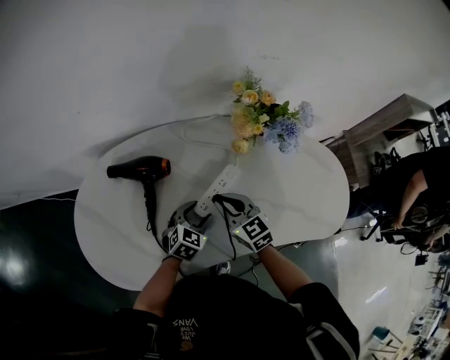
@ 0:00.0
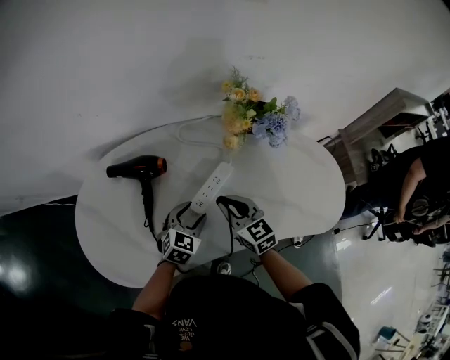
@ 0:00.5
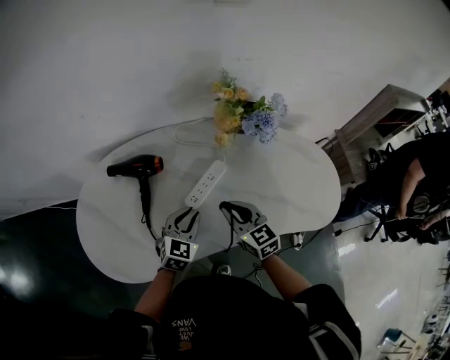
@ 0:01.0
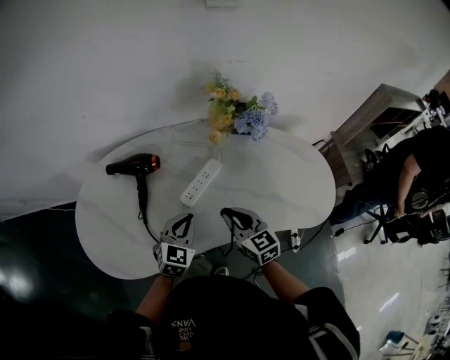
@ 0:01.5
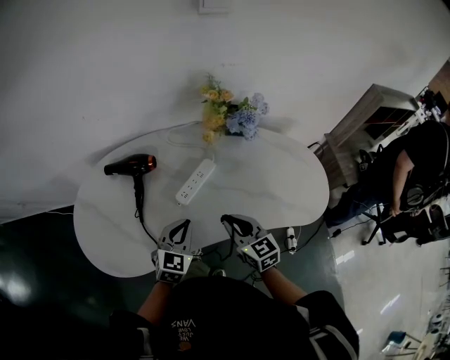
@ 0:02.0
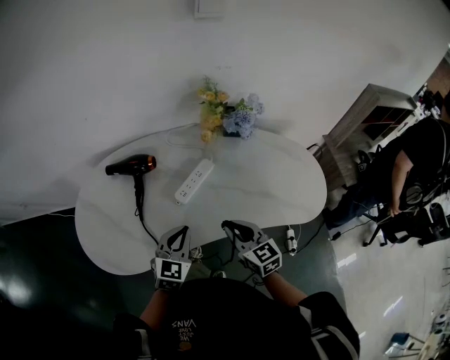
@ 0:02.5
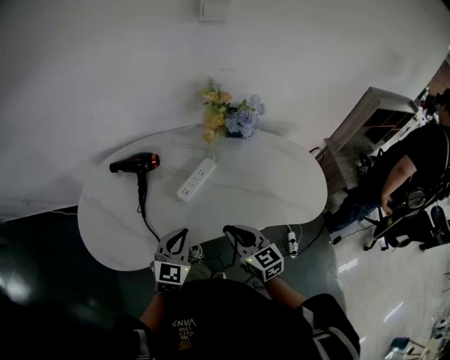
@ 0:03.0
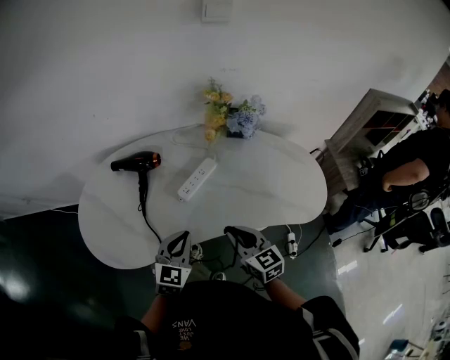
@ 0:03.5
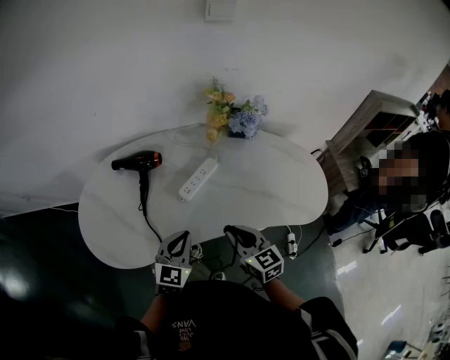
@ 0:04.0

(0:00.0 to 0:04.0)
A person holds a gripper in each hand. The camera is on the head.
0:00.0 - 0:02.0: The right gripper travels backward and to the right by some 20 cm. Meanwhile the left gripper heads backward and upward, covering about 20 cm, and closes up.
0:02.0 - 0:04.0: Both grippers move backward, roughly 5 cm.

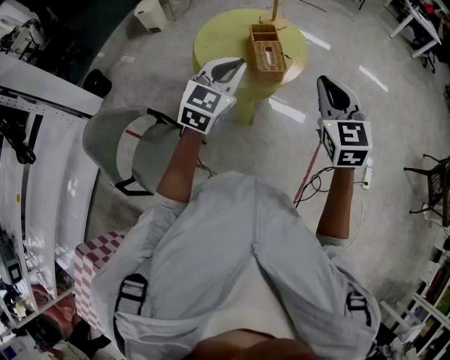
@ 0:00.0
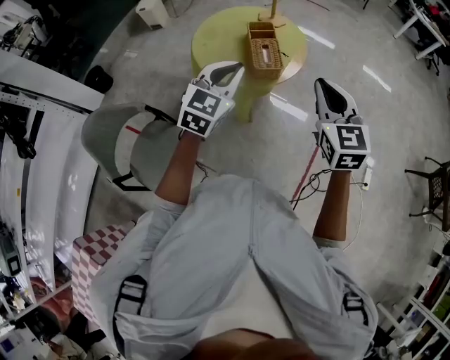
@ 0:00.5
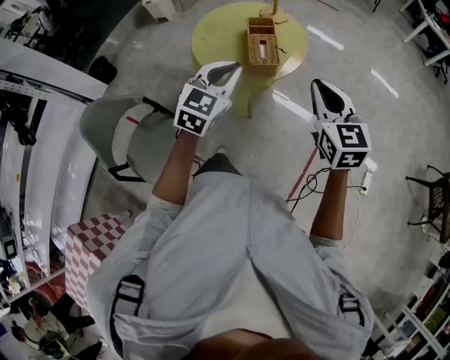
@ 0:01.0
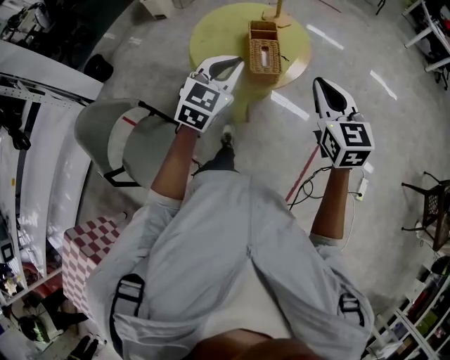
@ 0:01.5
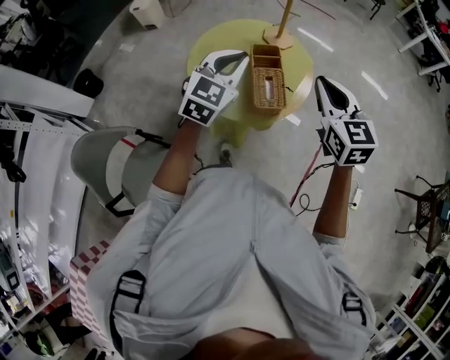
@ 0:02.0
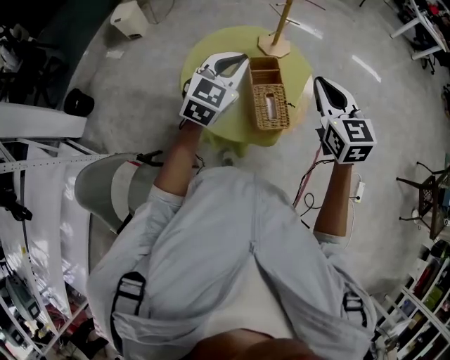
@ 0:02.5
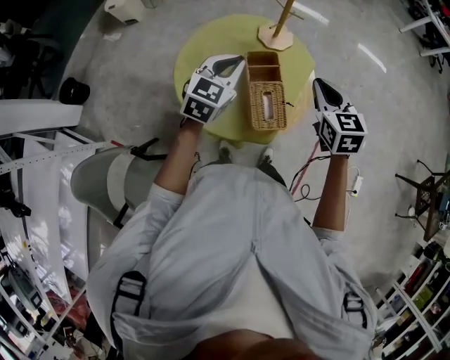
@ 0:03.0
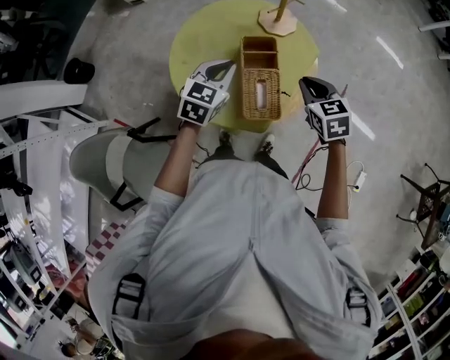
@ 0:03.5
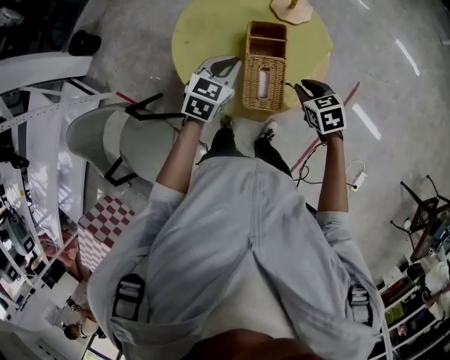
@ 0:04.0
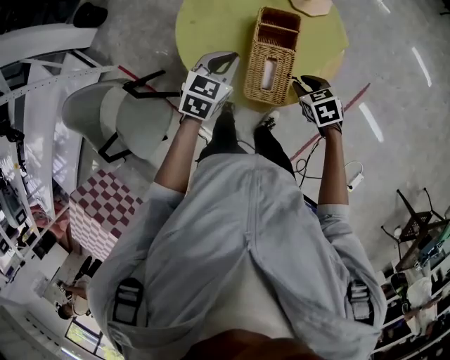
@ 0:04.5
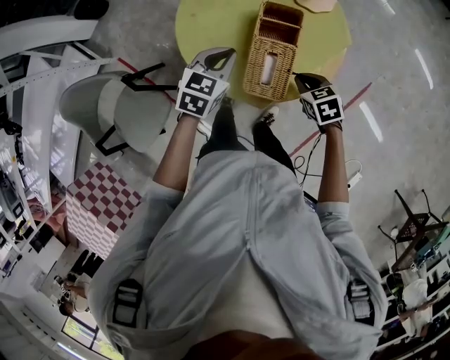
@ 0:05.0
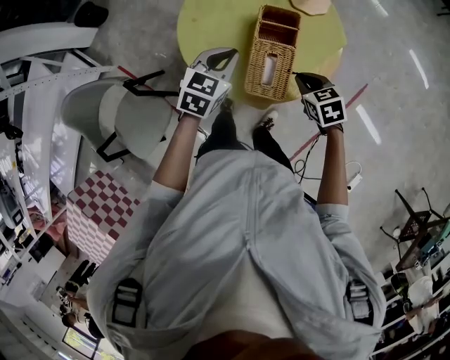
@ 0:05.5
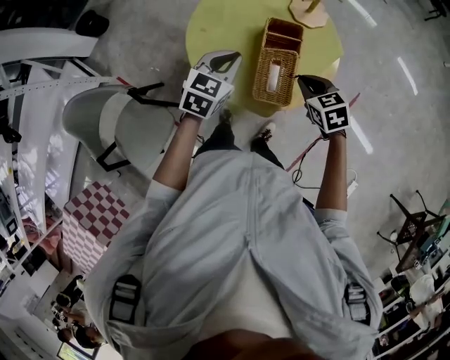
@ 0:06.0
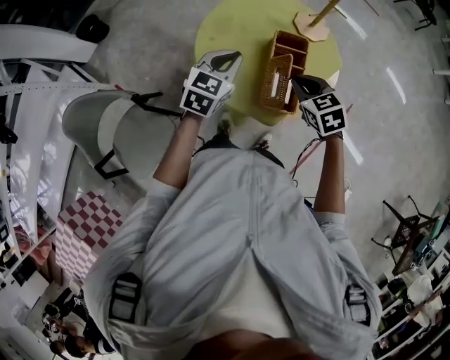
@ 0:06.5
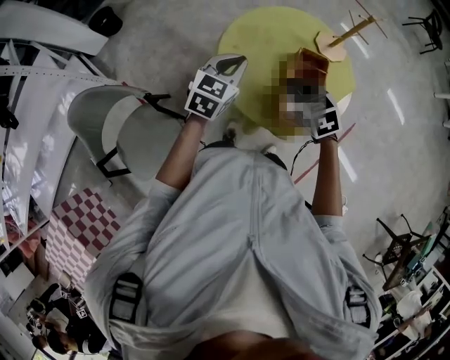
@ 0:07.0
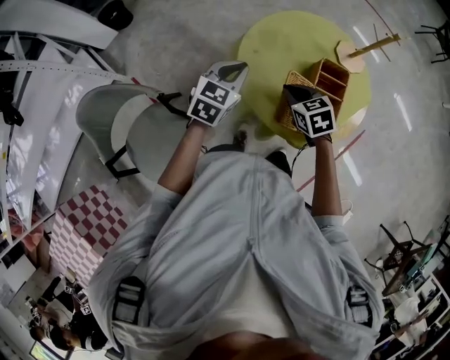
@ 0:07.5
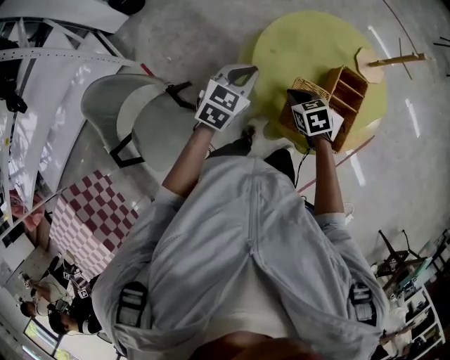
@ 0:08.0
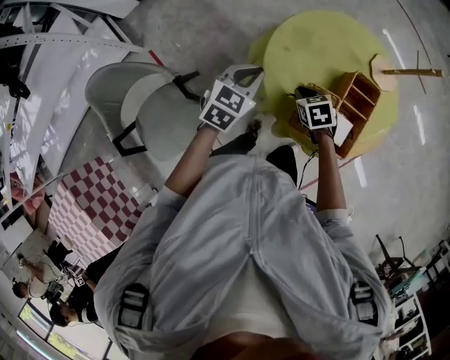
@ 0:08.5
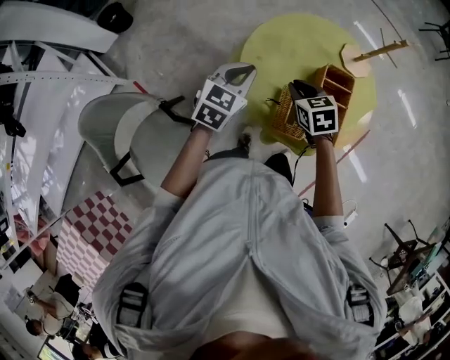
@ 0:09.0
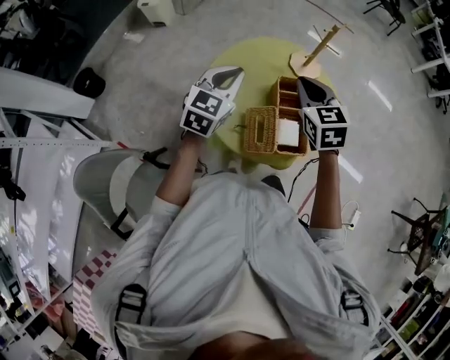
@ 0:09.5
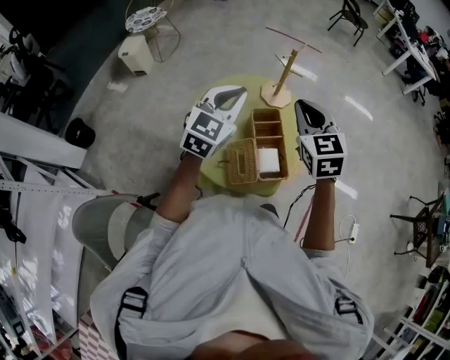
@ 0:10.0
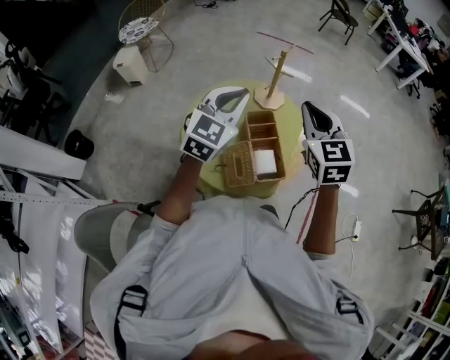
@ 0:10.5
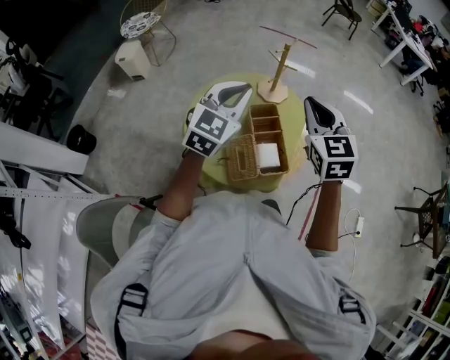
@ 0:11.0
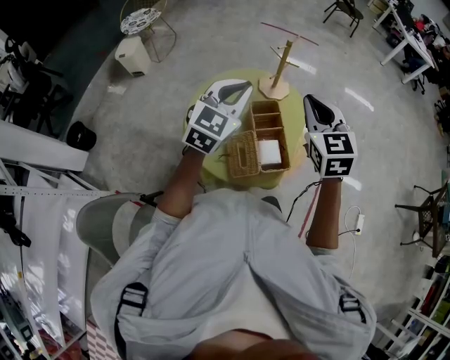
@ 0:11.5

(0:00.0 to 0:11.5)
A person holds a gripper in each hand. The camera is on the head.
0:00.0 - 0:02.0: The grippers both shift forward by some 20 cm.
0:02.0 - 0:04.0: Both grippers travel together downward and forward, roughly 30 cm. The left gripper changes its angle by about 30 degrees, while the right gripper tilts its fingers roughly 40 degrees downward.
0:04.0 - 0:06.0: Both grippers move to the left, some 5 cm. The right gripper goes downward and returns, approximately 5 cm each way.
0:06.0 - 0:07.5: Both grippers move to the left, about 20 cm.
0:07.5 - 0:09.5: The left gripper changes place by approximately 15 cm. The right gripper moves upward, some 15 cm, and swivels some 30 degrees.
0:09.5 - 0:11.5: The grippers both shift upward and to the right by roughly 15 cm.

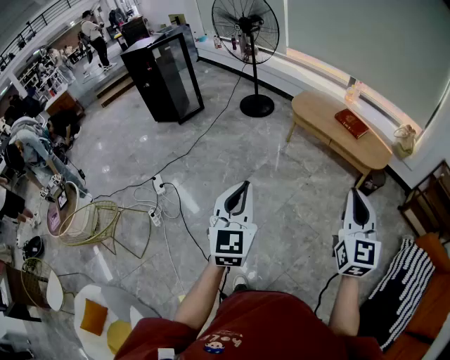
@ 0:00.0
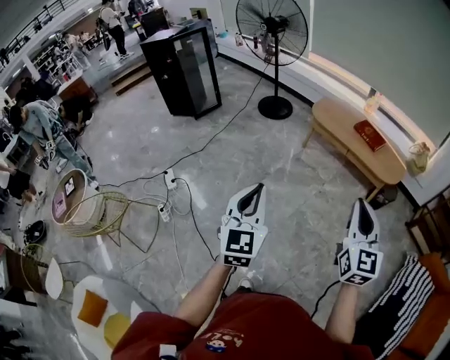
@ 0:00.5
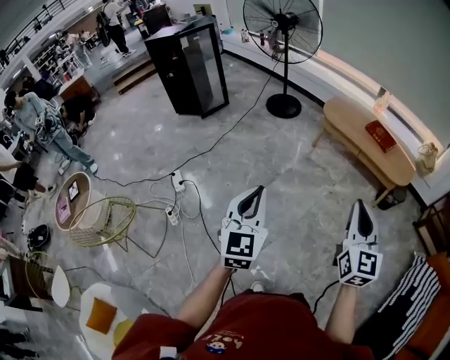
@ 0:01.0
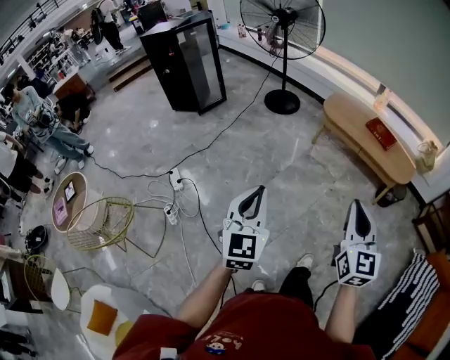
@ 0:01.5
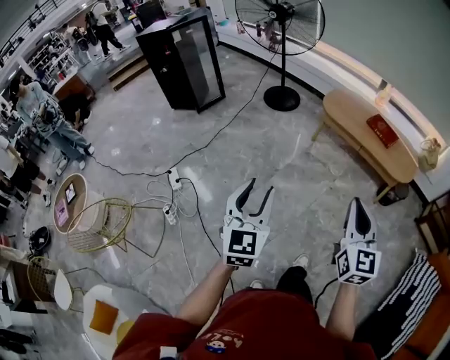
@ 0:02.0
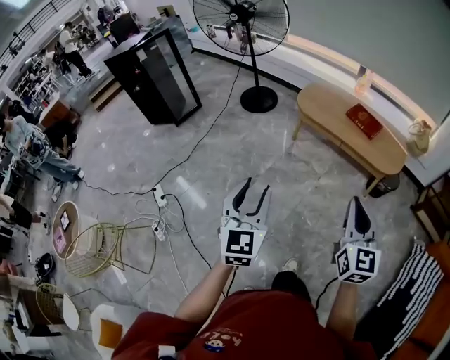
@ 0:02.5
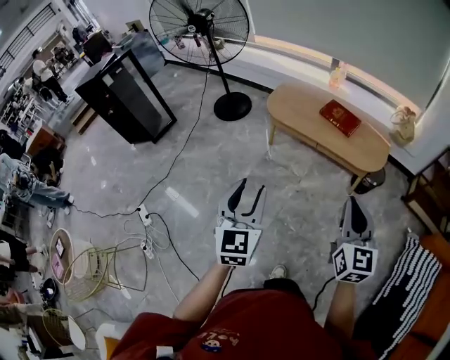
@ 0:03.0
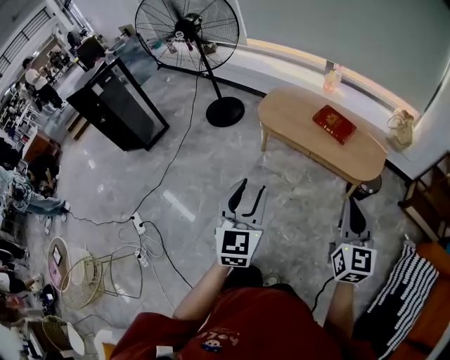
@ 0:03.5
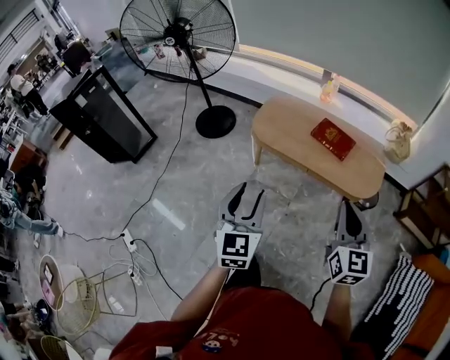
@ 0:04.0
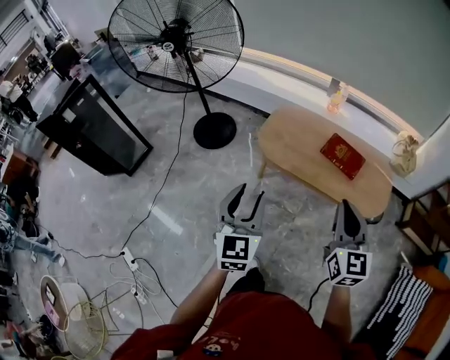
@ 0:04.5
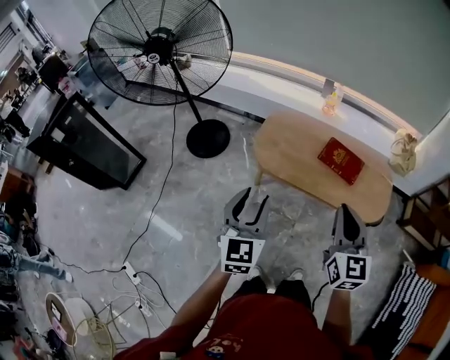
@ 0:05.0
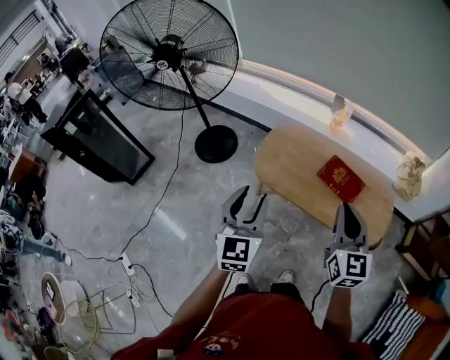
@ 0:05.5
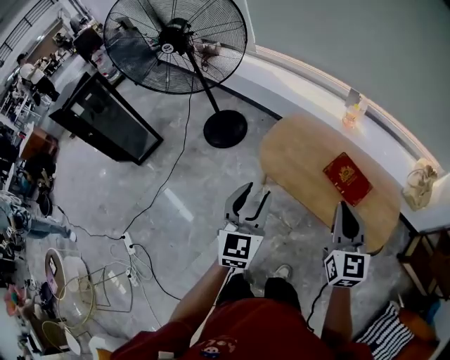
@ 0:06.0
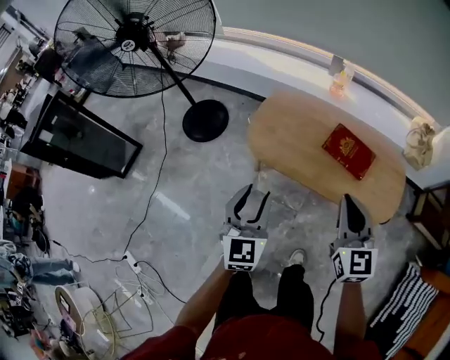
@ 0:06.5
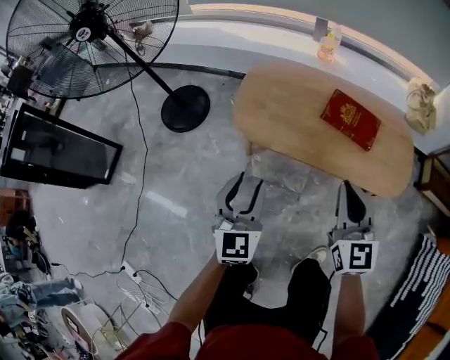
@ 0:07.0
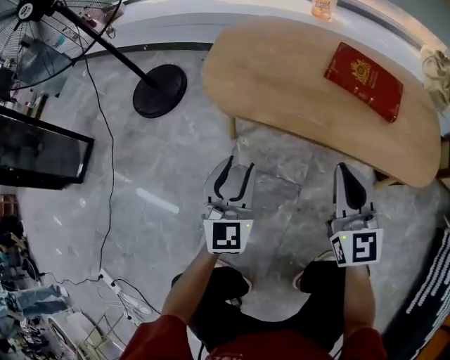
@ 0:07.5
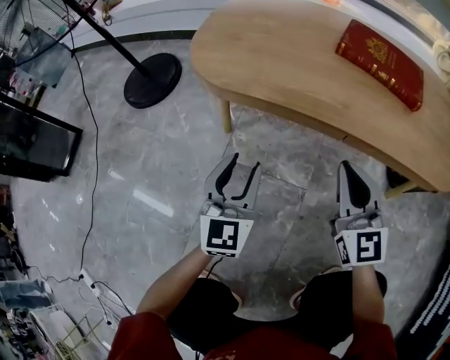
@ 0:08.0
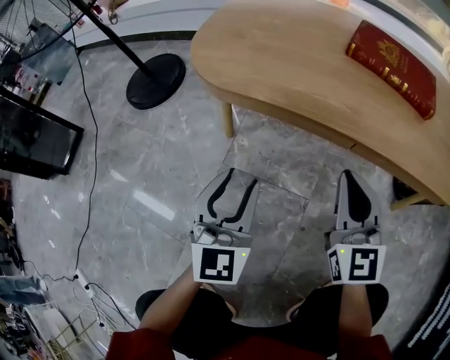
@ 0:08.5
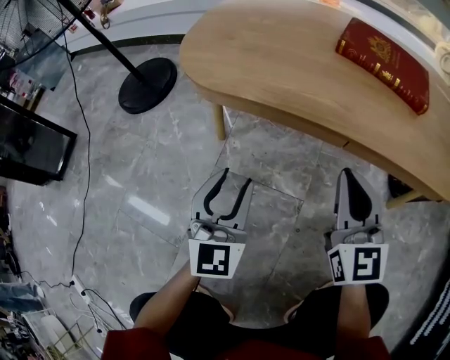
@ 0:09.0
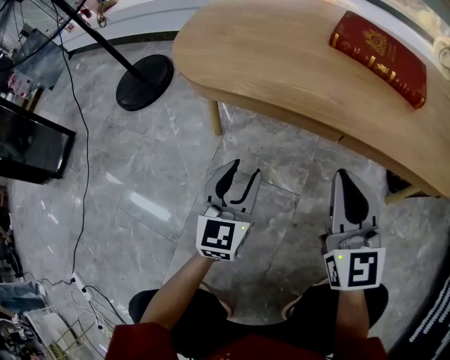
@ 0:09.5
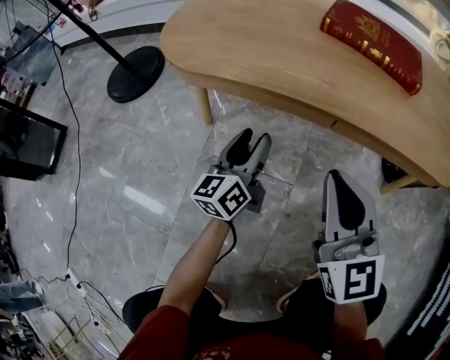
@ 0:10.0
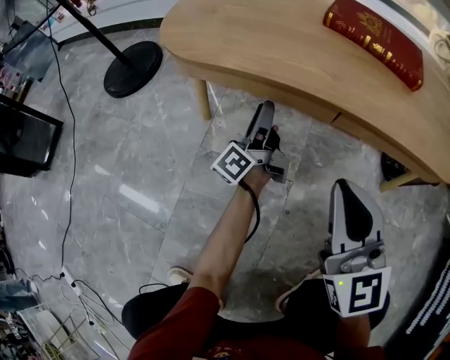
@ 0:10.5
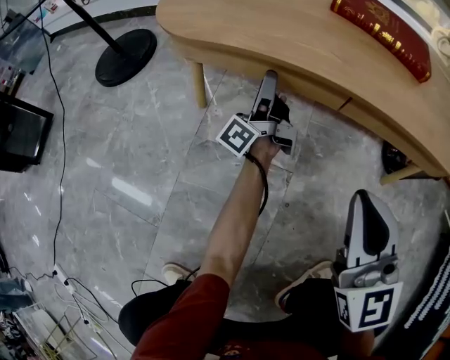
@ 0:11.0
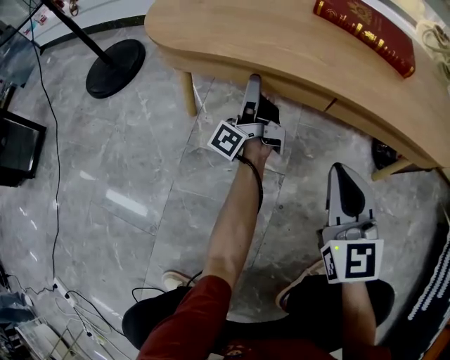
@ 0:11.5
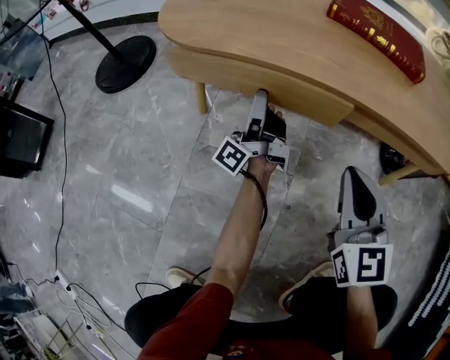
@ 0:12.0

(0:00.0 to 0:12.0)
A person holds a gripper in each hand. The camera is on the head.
0:00.0 - 0:02.0: The grippers both shift to the left and forward by about 15 cm. The left gripper opens up.
0:02.0 - 0:04.0: The pair of grippers is taken forward and to the right, some 50 cm.
0:04.0 - 0:06.0: The grippers both shift forward by approximately 30 cm.
0:06.0 - 0:08.0: The grippers both shift downward by approximately 60 cm.
0:08.0 - 0:10.0: The left gripper shifts approximately 15 cm downward, to the right and forward, and twists about 40 degrees counterclockwise, seen from behind.
0:10.0 - 0:12.0: The right gripper travels downward by approximately 5 cm. Meanwhile the left gripper is displaced forward by roughly 5 cm, and angles its fingers upward, by about 30 degrees.
